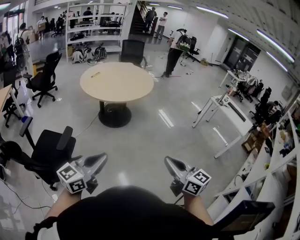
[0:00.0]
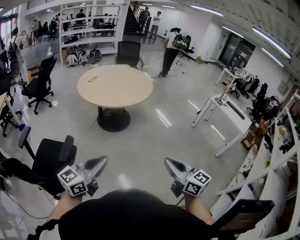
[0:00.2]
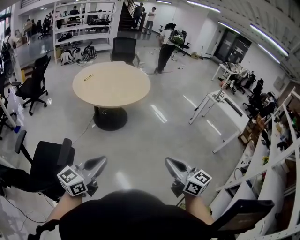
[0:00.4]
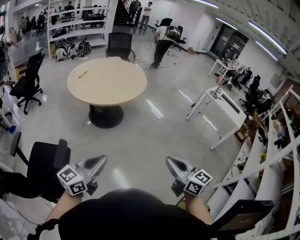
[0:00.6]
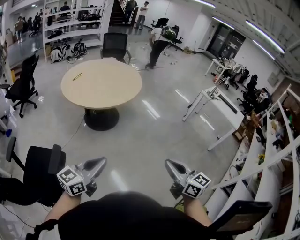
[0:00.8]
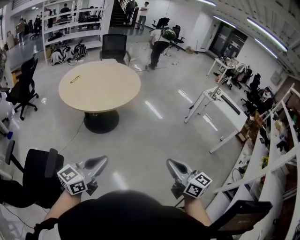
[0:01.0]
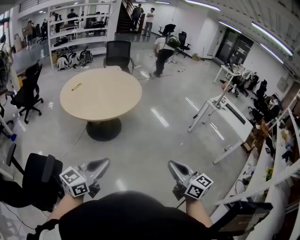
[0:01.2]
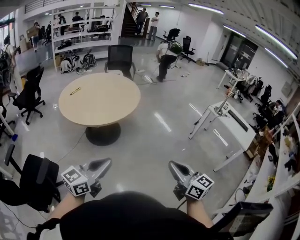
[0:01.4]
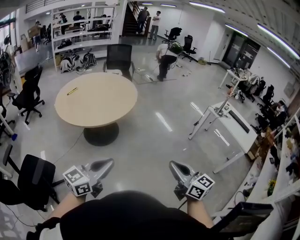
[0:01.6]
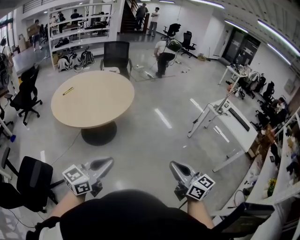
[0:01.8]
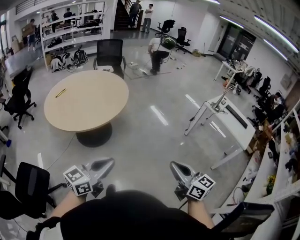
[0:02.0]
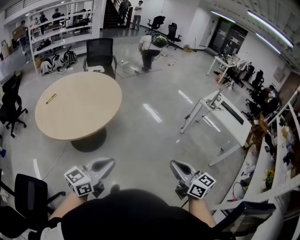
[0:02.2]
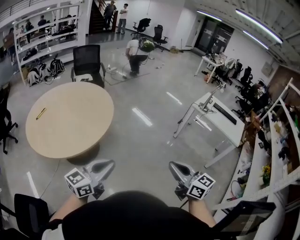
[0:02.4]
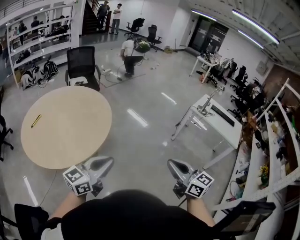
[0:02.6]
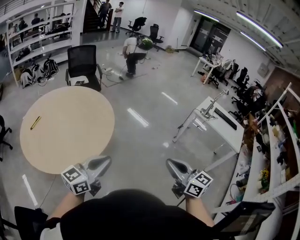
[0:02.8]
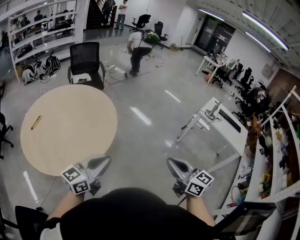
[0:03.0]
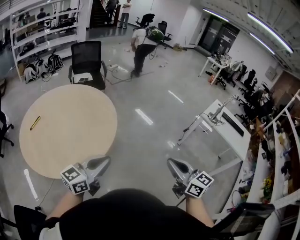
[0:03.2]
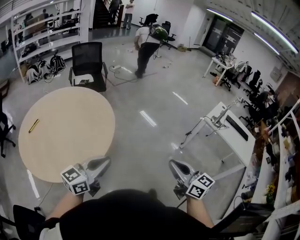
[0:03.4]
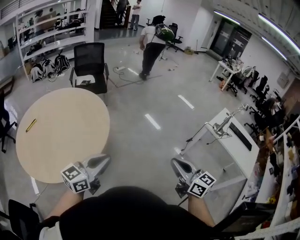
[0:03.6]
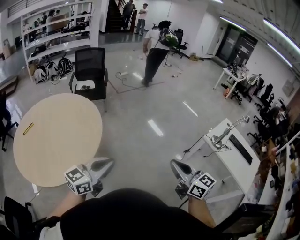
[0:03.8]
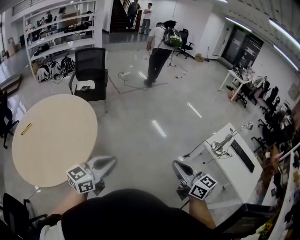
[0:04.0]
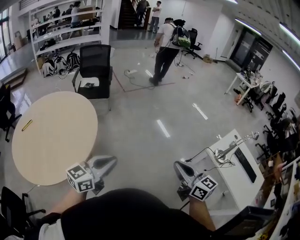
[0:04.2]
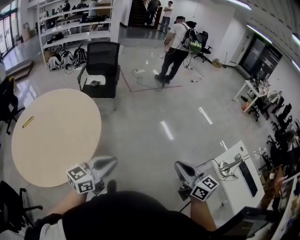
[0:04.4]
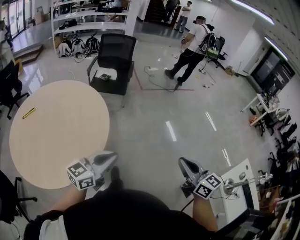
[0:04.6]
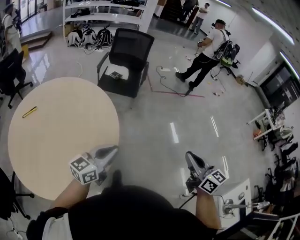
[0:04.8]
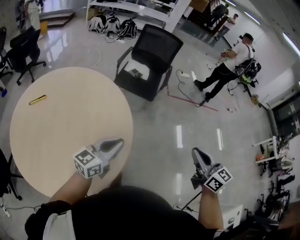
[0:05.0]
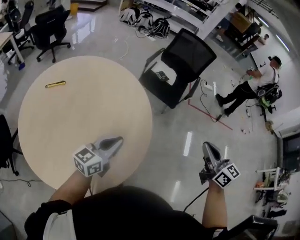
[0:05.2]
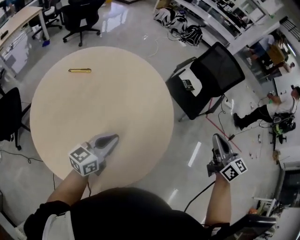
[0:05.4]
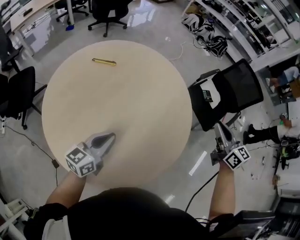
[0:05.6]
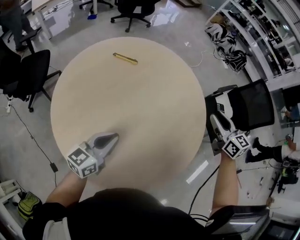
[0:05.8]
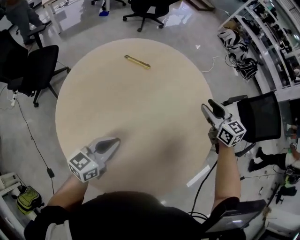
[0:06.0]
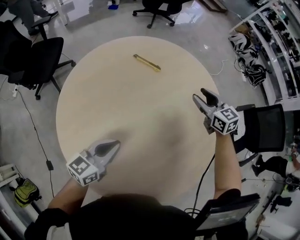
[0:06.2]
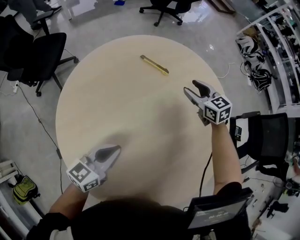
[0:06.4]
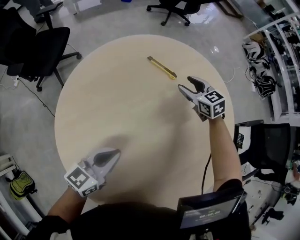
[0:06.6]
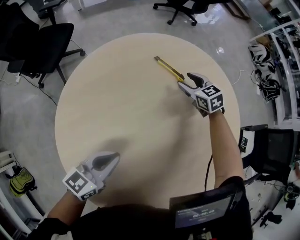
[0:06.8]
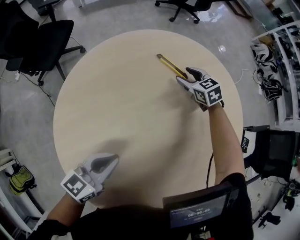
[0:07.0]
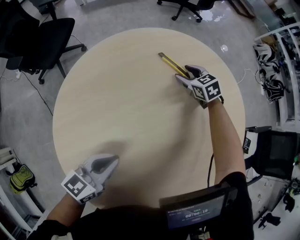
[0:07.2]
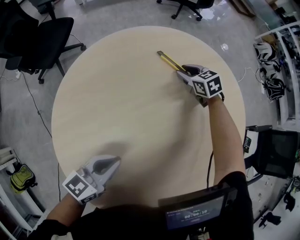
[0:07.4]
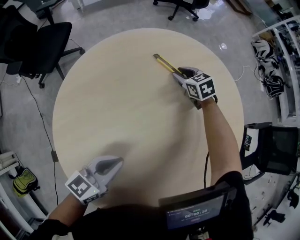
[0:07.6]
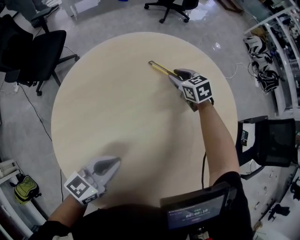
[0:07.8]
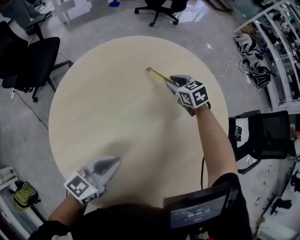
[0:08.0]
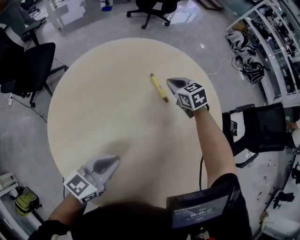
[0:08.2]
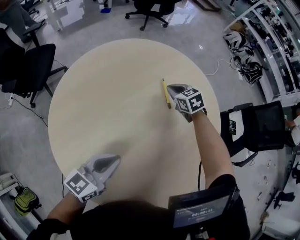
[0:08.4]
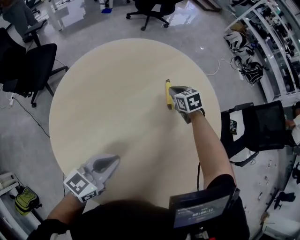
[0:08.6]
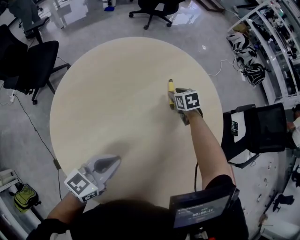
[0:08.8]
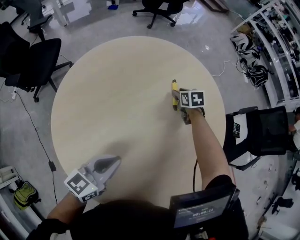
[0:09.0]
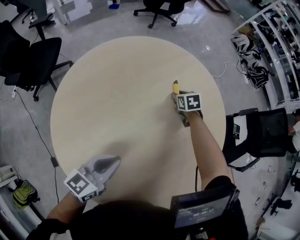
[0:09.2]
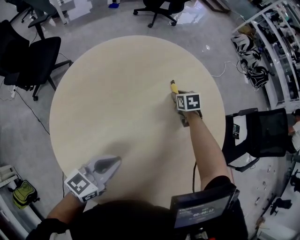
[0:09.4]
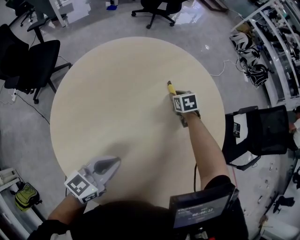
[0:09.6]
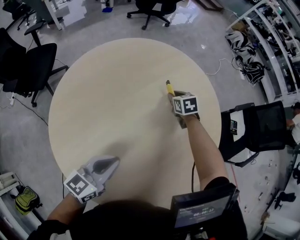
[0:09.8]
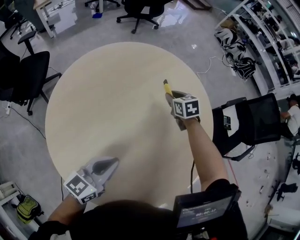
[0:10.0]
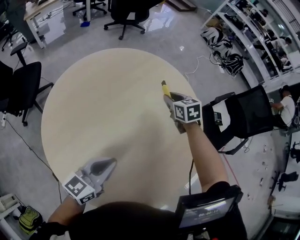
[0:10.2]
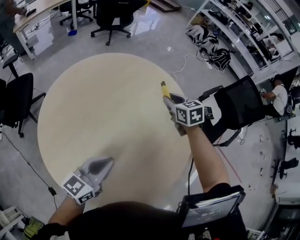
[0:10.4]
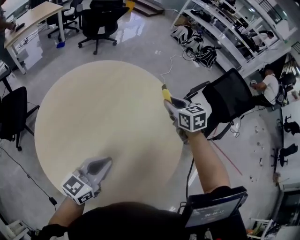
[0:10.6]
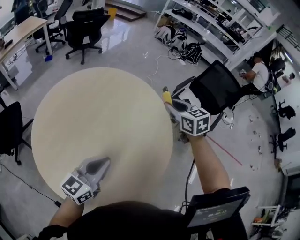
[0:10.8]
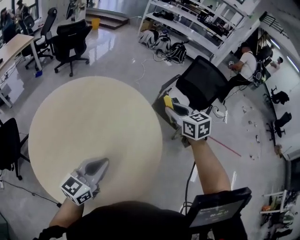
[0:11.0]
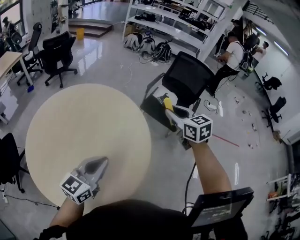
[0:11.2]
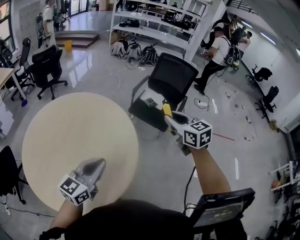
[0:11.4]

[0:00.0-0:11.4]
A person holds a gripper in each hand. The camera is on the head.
0:00.0 to 0:01.4: The grippers both shift forward and to the right by roughly 30 cm.
0:01.4 to 0:02.8: Both grippers travel together forward, roughly 40 cm.
0:02.8 to 0:04.2: The pair of grippers is taken forward and to the right, roughly 50 cm.
0:04.2 to 0:05.6: Both grippers are carried approximately 80 cm. The right gripper swivels about 60 degrees. Meanwhile the left gripper turns by some 70 degrees.
0:05.6 to 0:07.2: The left gripper moves some 25 cm, and swivels some 20 degrees. Meanwhile the right gripper changes place by roughly 70 cm, tips its fingers downward by roughly 30 degrees, and opens.
0:07.2 to 0:08.6: The left gripper is displaced upward, to the right and backward by approximately 10 cm. The right gripper moves to the right, backward and upward, approximately 20 cm, turns by about 20 degrees, and closes.
0:08.6 to 0:10.0: The right gripper reaches some 5 cm downward, then returns, and opens up.
0:10.0 to 0:11.4: The right gripper ends up some 70 cm from where it was, and turns by roughly 40 degrees. Meanwhile the left gripper ends up about 30 cm from where it was, and swivels some 30 degrees.

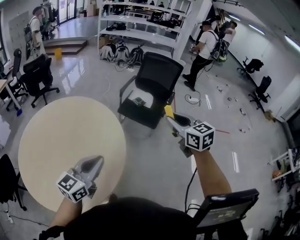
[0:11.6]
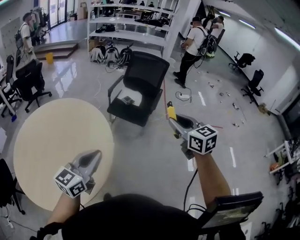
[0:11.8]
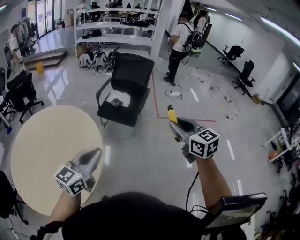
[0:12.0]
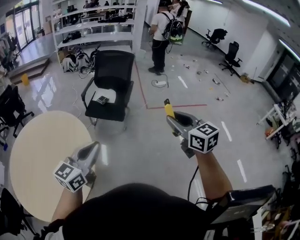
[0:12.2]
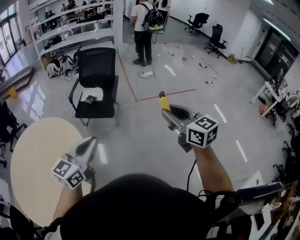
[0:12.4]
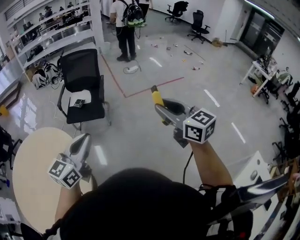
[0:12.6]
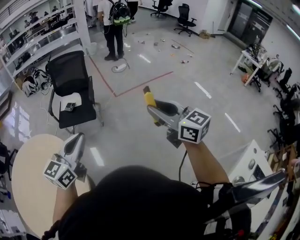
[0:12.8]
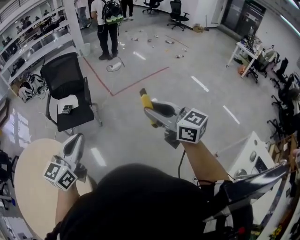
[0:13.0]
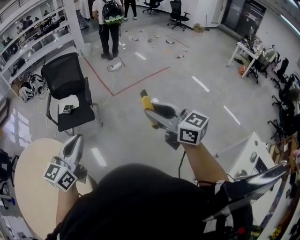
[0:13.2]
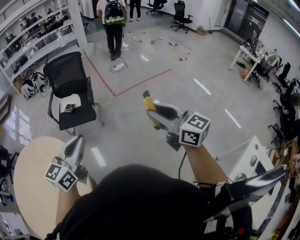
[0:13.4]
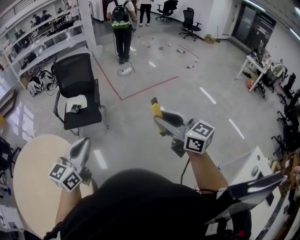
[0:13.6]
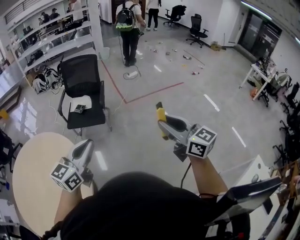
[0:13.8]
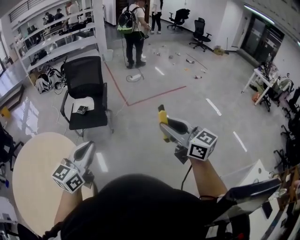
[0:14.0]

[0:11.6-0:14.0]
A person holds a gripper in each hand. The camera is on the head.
0:11.6 to 0:12.8: The left gripper is displaced to the right by some 25 cm, and swivels some 30 degrees. Meanwhile the right gripper goes roughly 35 cm to the right and backward, and changes its angle by approximately 30 degrees.
0:12.8 to 0:14.0: The grippers move only a little.

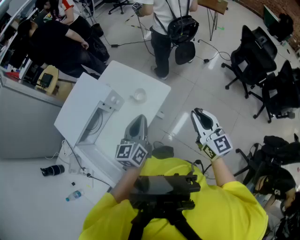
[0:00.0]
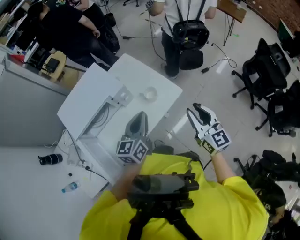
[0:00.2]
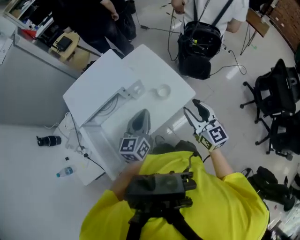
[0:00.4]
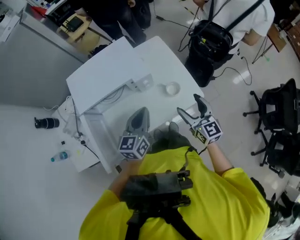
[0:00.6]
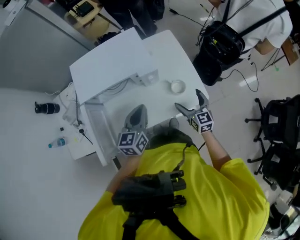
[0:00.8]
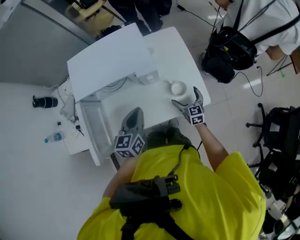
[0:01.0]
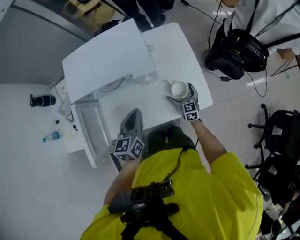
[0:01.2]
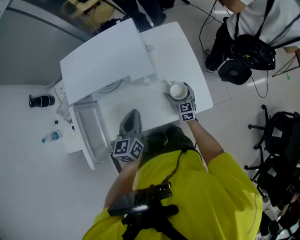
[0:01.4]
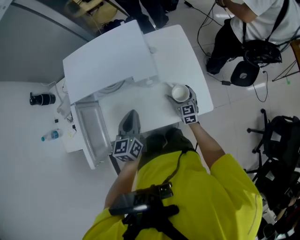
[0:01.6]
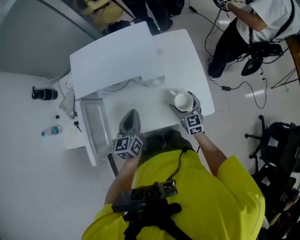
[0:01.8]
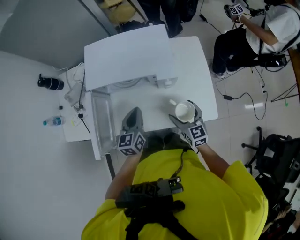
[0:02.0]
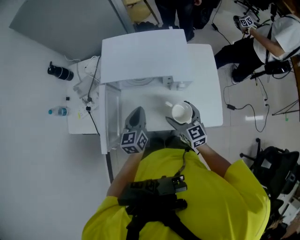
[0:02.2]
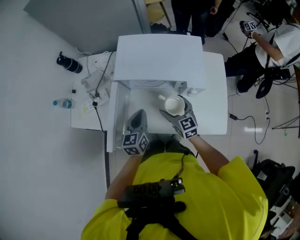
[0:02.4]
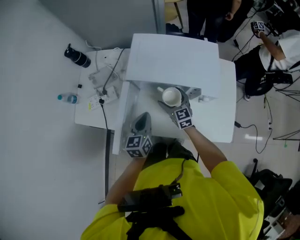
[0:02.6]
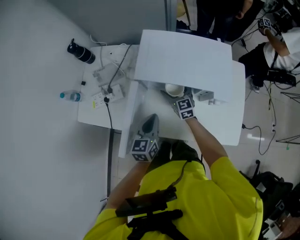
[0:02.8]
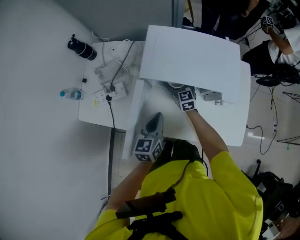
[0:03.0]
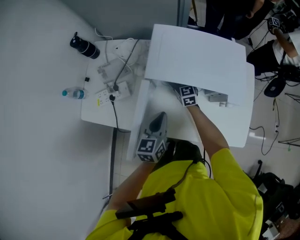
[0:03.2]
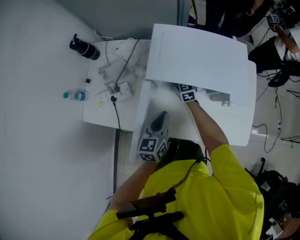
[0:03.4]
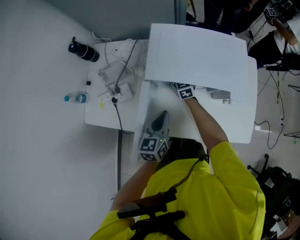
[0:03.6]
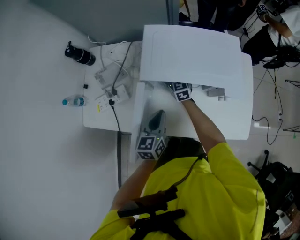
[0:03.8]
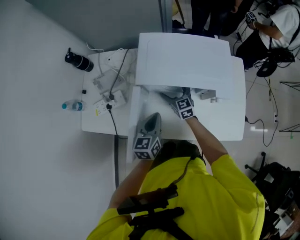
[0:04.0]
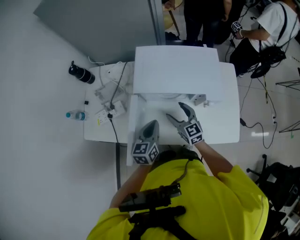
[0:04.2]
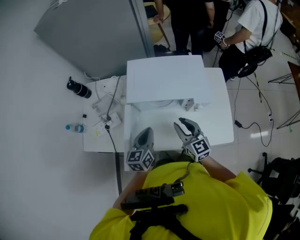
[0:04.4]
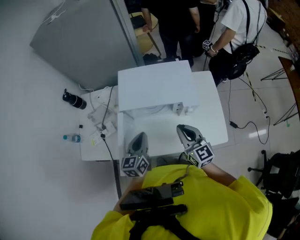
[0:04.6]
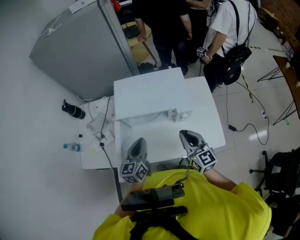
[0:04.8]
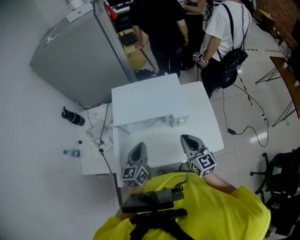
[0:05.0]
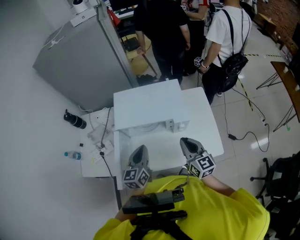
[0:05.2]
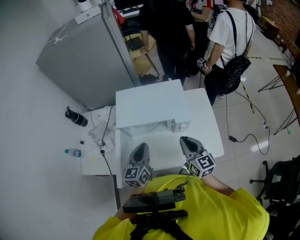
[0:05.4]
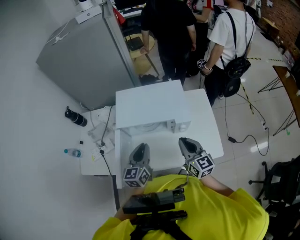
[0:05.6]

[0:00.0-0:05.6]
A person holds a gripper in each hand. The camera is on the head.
0:00.0 to 0:01.4: The left gripper changes place by roughly 20 cm, and swivels about 40 degrees, while the right gripper travels downward by some 40 cm, turns by approximately 40 degrees, and opens.
0:01.4 to 0:02.8: The left gripper changes place by some 20 cm. Meanwhile the right gripper changes place by roughly 40 cm, and changes its angle by some 30 degrees.
0:02.8 to 0:04.2: The right gripper heads backward and upward, covering roughly 10 cm.
0:04.2 to 0:05.6: The right gripper heads upward, to the right and backward, covering some 25 cm, and closes its fingers, while the left gripper is displaced upward and to the right by roughly 10 cm.

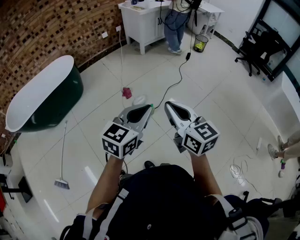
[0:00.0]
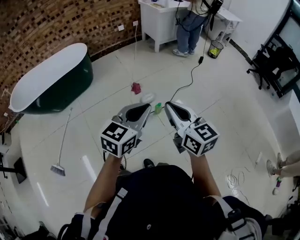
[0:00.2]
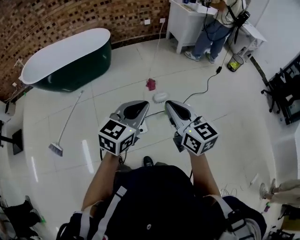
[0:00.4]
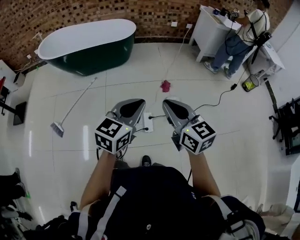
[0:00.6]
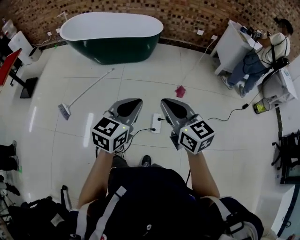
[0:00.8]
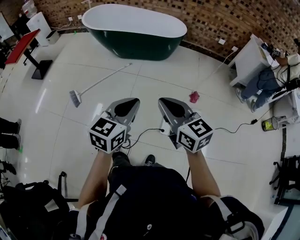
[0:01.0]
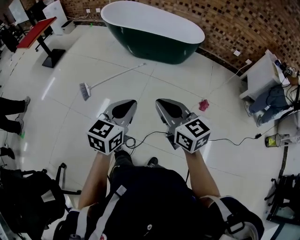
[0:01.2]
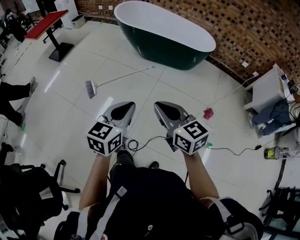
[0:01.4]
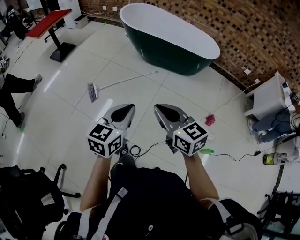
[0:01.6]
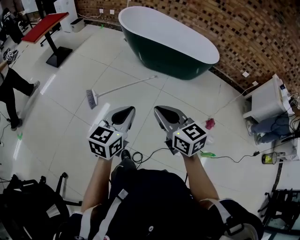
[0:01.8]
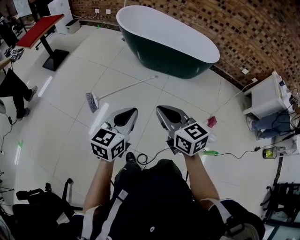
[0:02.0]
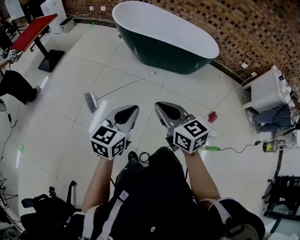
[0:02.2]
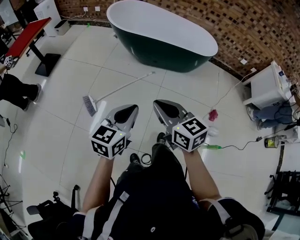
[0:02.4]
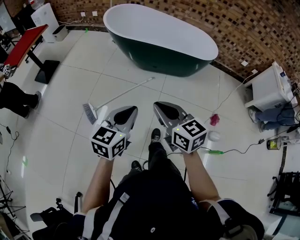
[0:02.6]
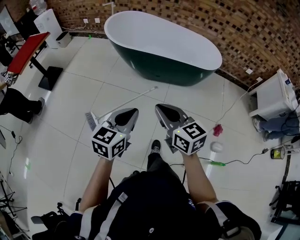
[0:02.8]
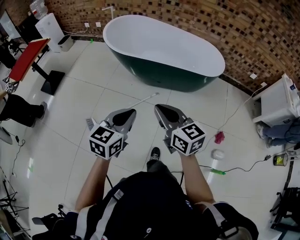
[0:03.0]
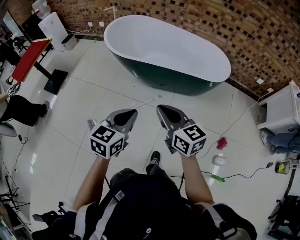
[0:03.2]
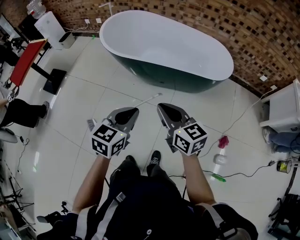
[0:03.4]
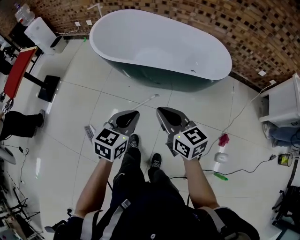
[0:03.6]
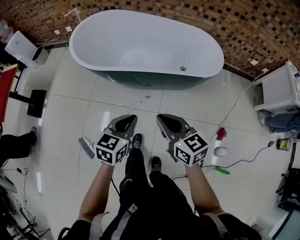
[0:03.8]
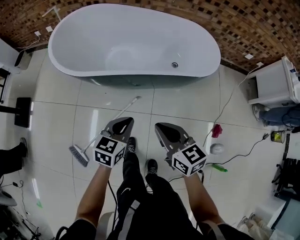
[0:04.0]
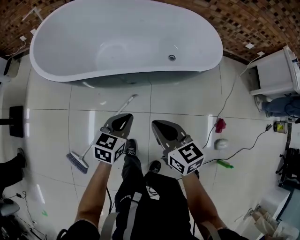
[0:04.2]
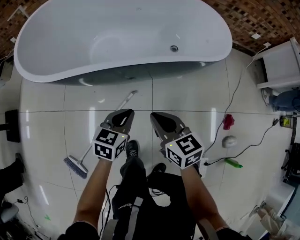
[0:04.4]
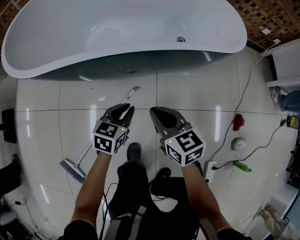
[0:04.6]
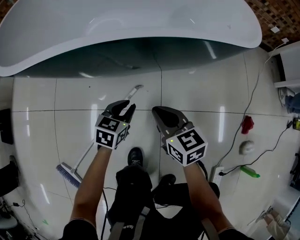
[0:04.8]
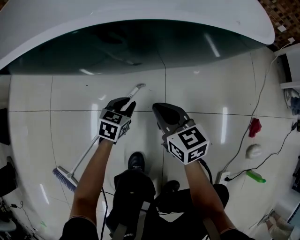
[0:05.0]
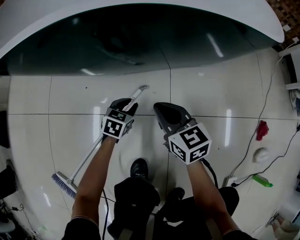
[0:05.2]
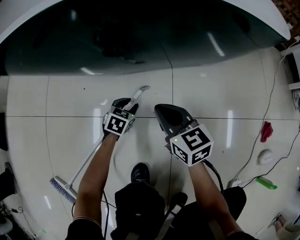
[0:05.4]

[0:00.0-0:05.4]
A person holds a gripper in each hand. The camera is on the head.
0:00.0 to 0:01.4: Both grippers are carried some 50 cm. The left gripper turns by approximately 70 degrees, while the right gripper rotates some 70 degrees.
0:01.4 to 0:02.8: The grippers both shift forward by about 30 cm.
0:02.8 to 0:04.0: The grippers both shift forward and downward by approximately 35 cm.
0:04.0 to 0:05.4: The grippers both shift downward by roughly 60 cm. The left gripper swivels about 20 degrees, and opens its fingers.
